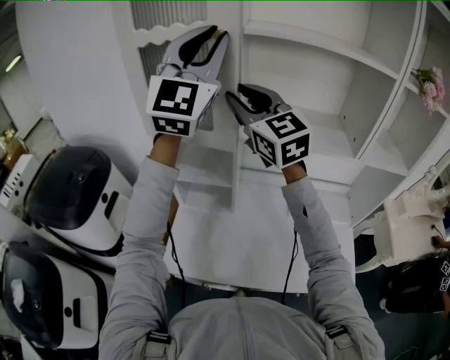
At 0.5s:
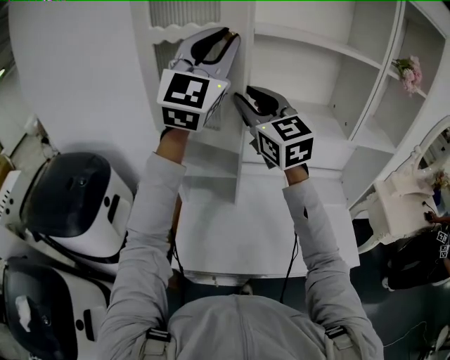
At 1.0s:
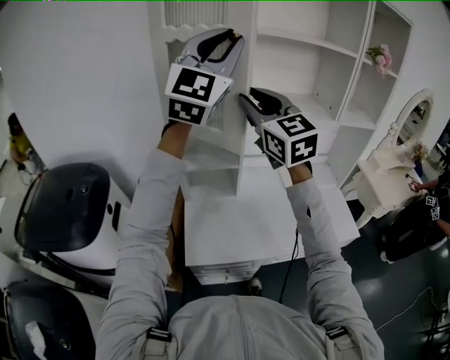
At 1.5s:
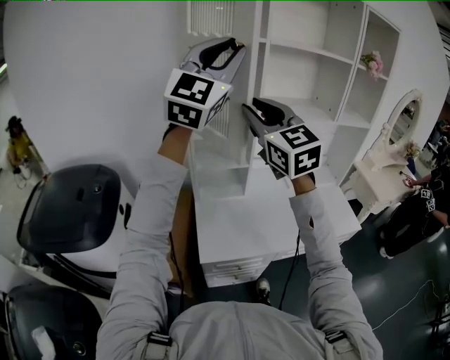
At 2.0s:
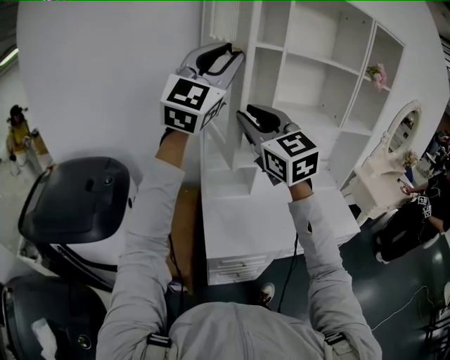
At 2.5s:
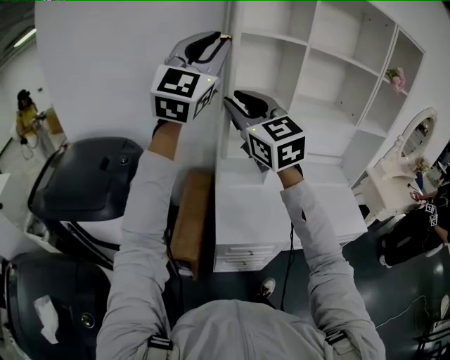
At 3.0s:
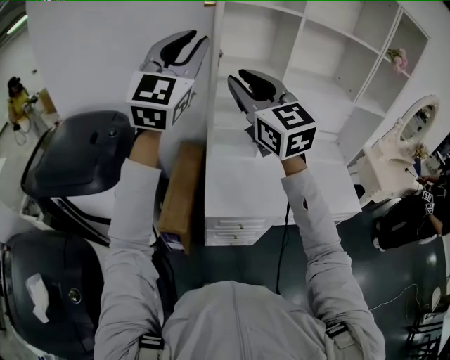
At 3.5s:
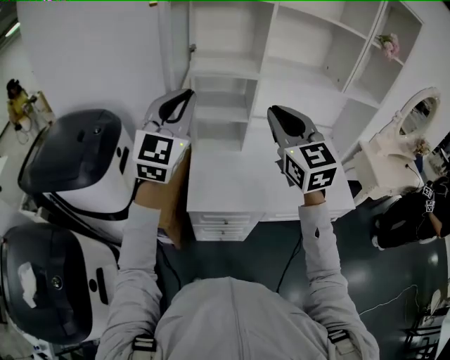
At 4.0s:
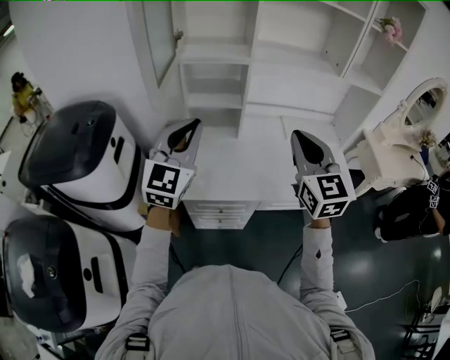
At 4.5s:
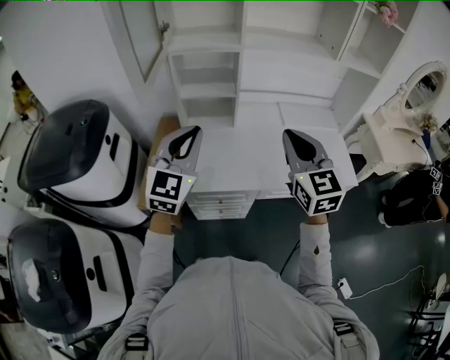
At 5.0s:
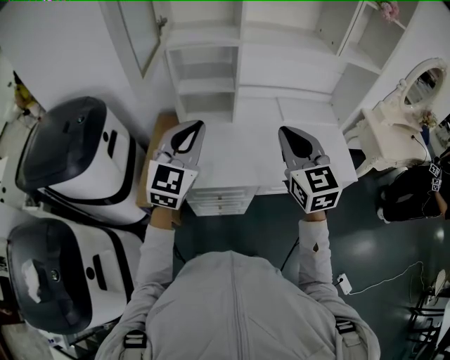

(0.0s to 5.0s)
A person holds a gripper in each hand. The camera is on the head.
0.0s - 2.5s: The grippers both shift to the left and backward by some 35 cm.
2.5s - 5.0s: The left gripper is displaced downward and to the right by about 40 cm, and rotates approximately 30 degrees. Meanwhile the right gripper is displaced to the right and downward by about 40 cm, swivels some 20 degrees, and closes its fingers.

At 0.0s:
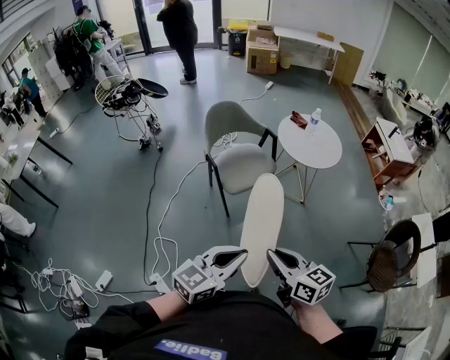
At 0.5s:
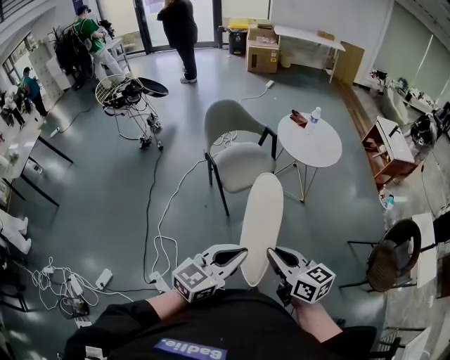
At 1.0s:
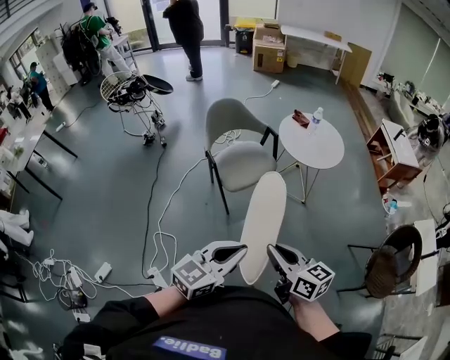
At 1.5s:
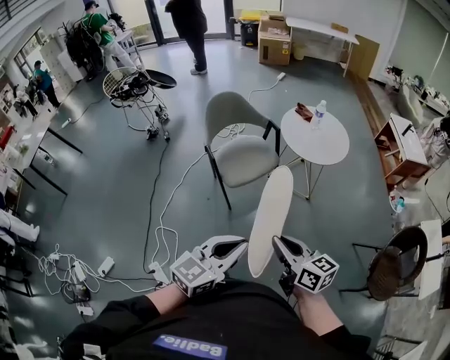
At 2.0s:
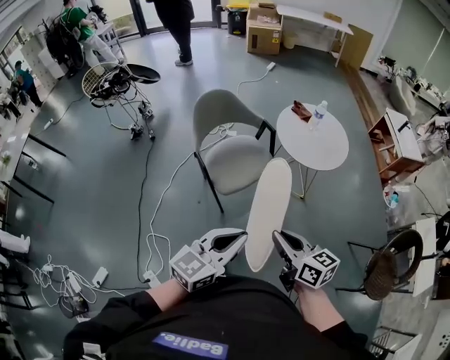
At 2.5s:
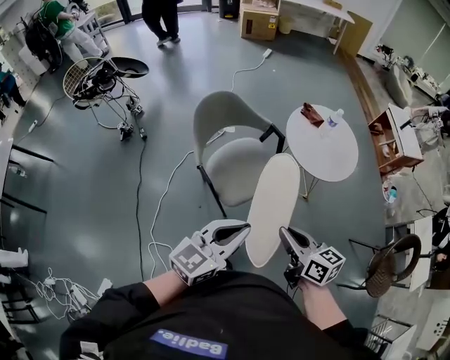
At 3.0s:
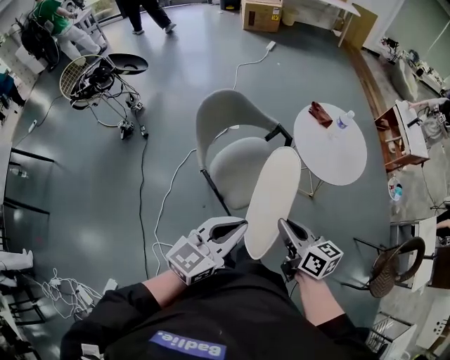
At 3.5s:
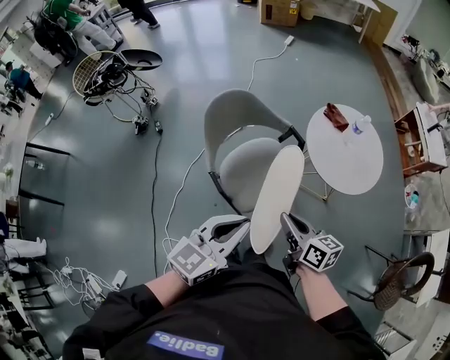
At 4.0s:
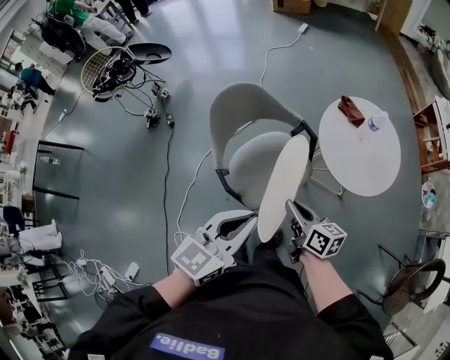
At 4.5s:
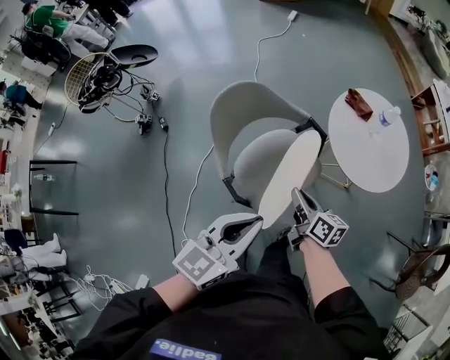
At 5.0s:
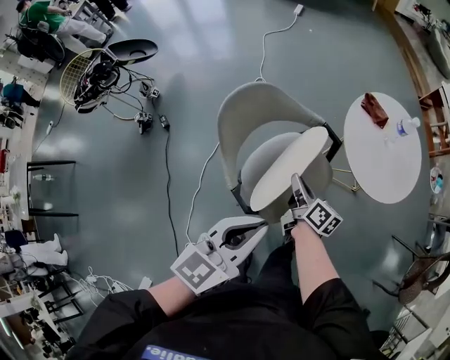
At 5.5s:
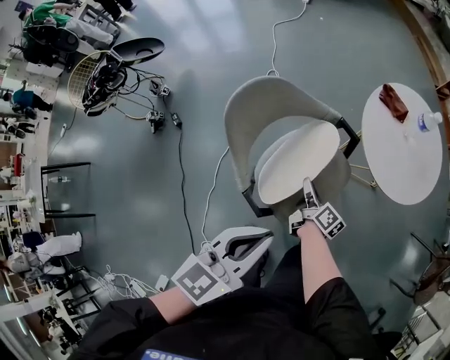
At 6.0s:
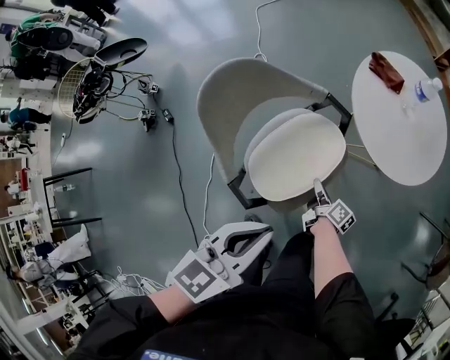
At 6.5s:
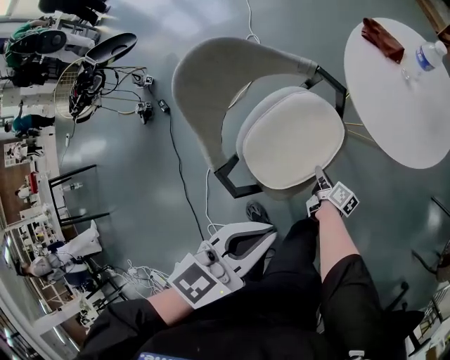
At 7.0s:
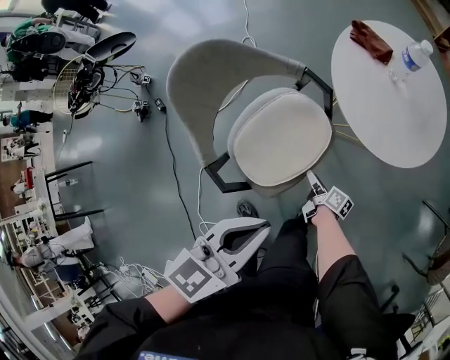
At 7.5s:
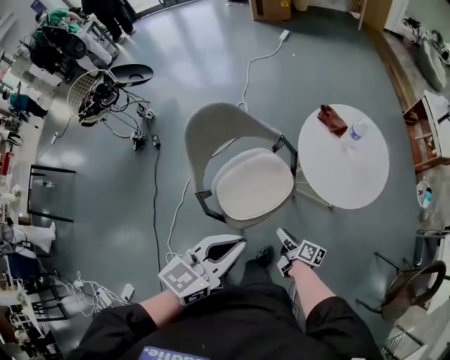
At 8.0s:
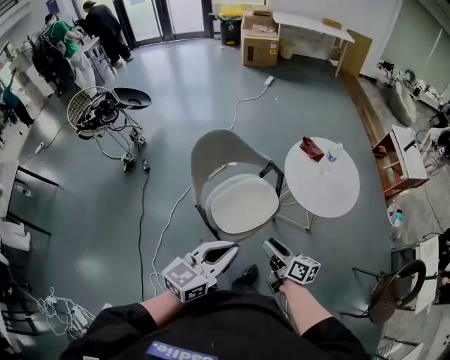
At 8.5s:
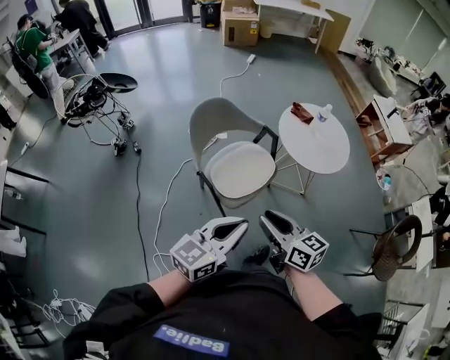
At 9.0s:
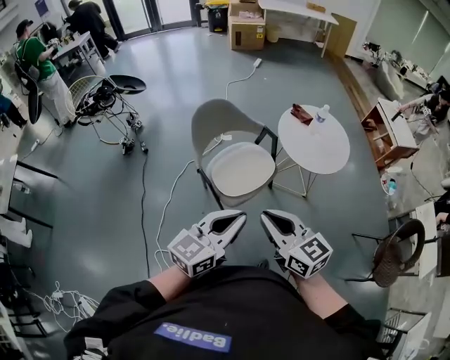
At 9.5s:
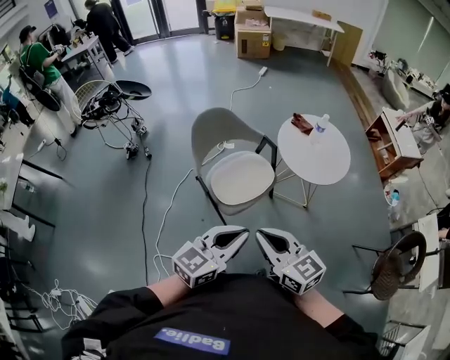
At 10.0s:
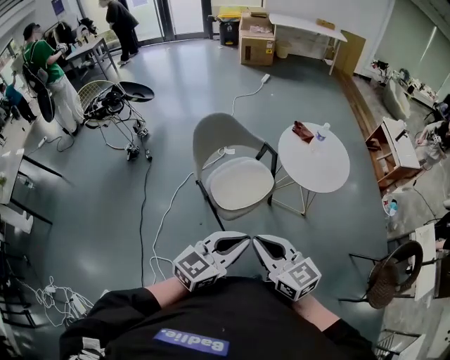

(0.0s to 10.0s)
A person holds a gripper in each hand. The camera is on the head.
0.0s - 2.0s: The two grippers go some 15 cm forward.
2.0s - 4.0s: The two grippers go approximately 30 cm forward.
4.0s - 6.0s: The right gripper is displaced downward by approximately 30 cm, and turns by some 50 degrees. Meanwhile the left gripper moves downward and forward, approximately 15 cm.
6.0s - 8.0s: The right gripper travels upward and backward by some 35 cm, turns by about 40 degrees, and opens its fingers. The left gripper shifts approximately 15 cm backward and upward.
8.0s - 10.0s: The right gripper heads upward and backward, covering approximately 25 cm, twists approximately 40 degrees counterclockwise, seen from behind, and closes, while the left gripper shifts about 15 cm backward and to the right.

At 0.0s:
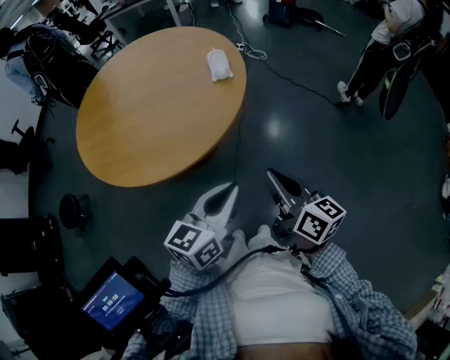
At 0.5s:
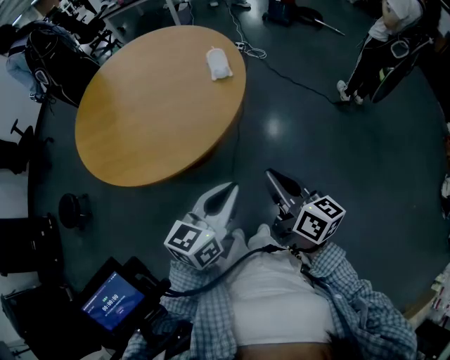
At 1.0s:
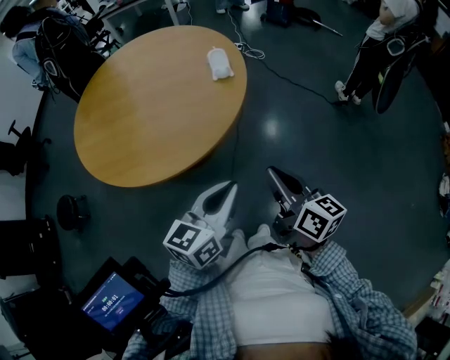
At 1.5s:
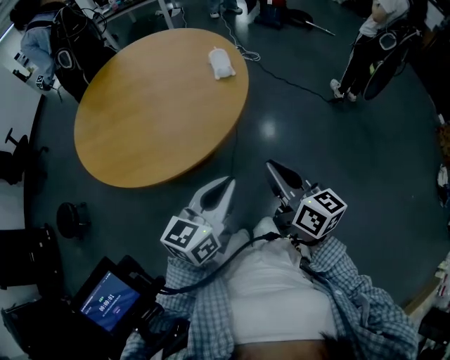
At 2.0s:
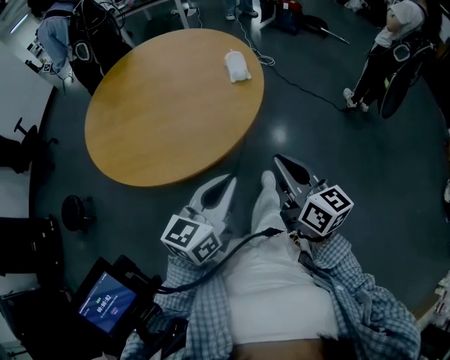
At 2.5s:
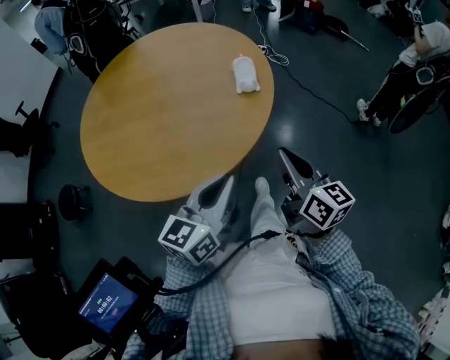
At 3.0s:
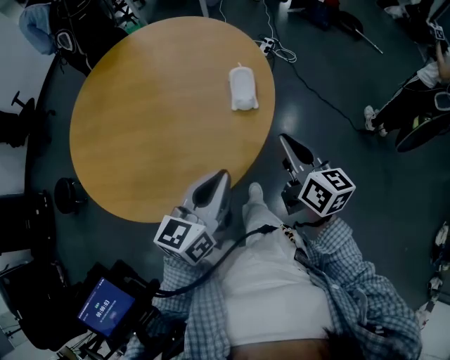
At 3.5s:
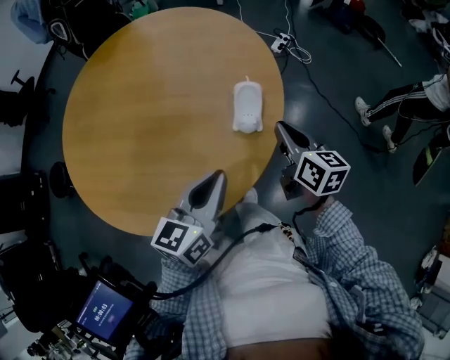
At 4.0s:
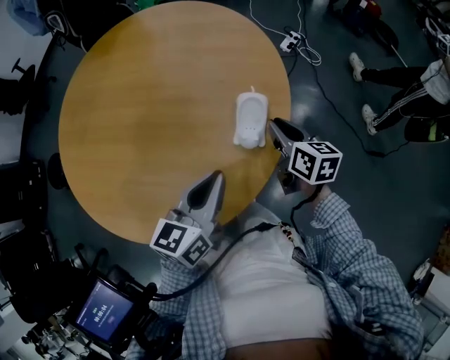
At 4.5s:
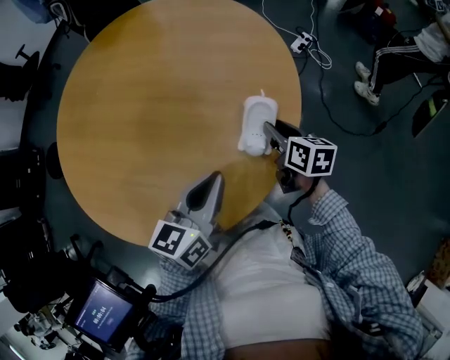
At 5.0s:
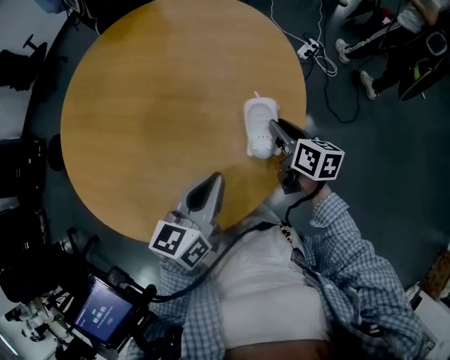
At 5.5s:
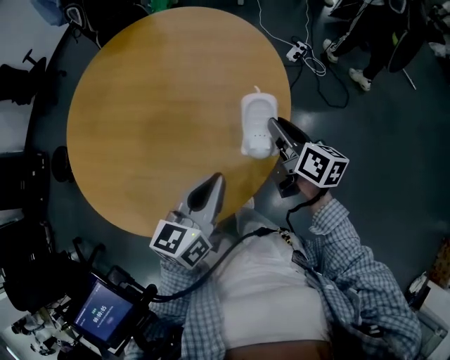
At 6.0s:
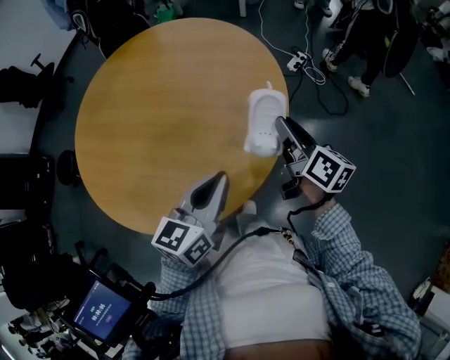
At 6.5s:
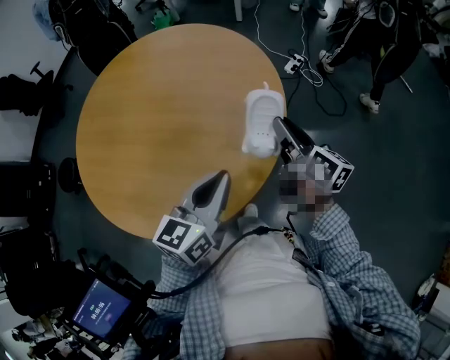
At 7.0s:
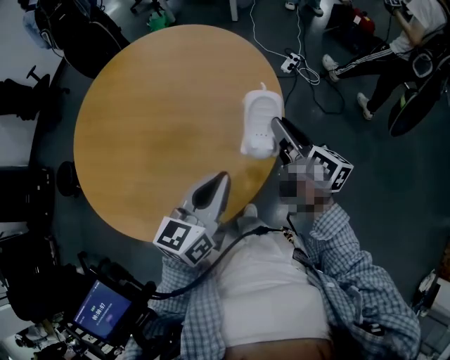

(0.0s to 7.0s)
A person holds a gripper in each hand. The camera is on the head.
0.0s - 2.0s: The left gripper shifts about 5 cm to the left.
2.0s - 3.5s: Both grippers travel together forward, approximately 40 cm. The left gripper turns by roughly 20 degrees; the right gripper changes its angle by some 20 degrees.
3.5s - 5.0s: The right gripper moves forward and downward, about 15 cm, and opens. Meanwhile the left gripper heads forward, covering approximately 5 cm.
5.0s - 7.0s: The right gripper heads upward, covering about 15 cm, and turns by approximately 20 degrees. Meanwhile the left gripper travels upward by roughly 5 cm.

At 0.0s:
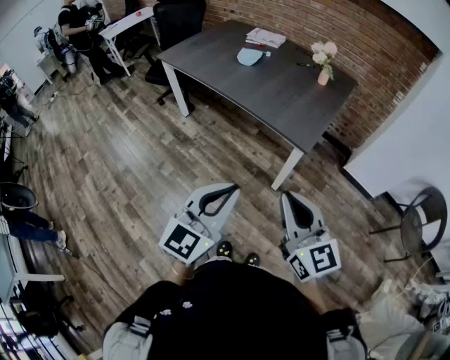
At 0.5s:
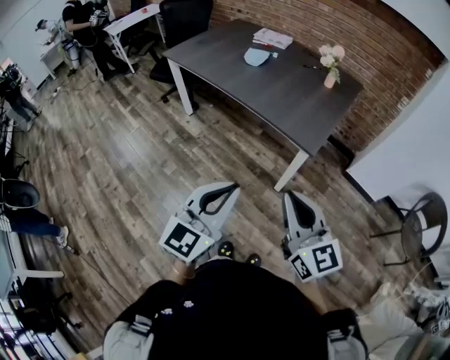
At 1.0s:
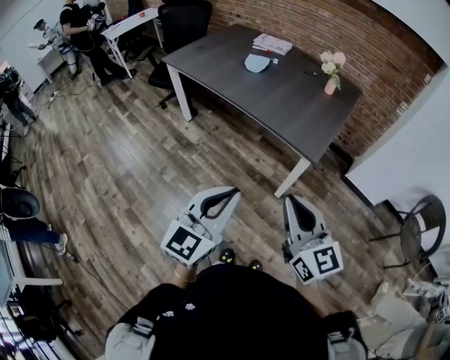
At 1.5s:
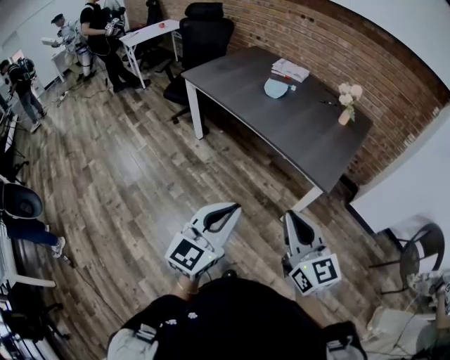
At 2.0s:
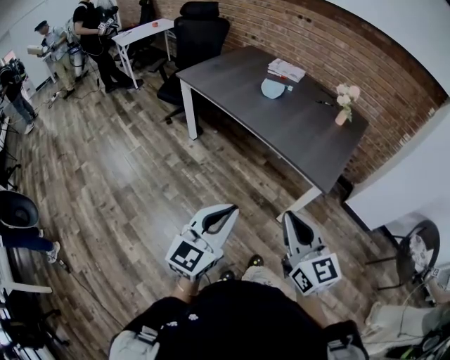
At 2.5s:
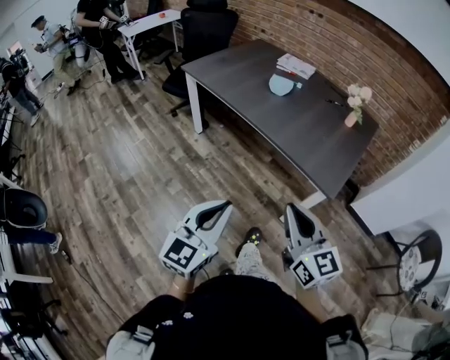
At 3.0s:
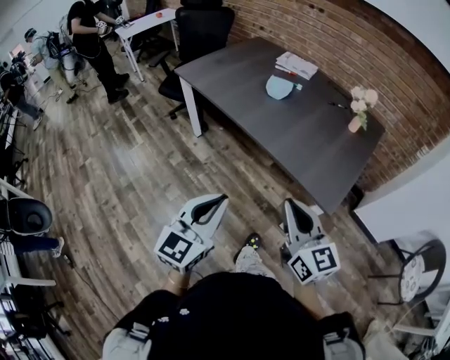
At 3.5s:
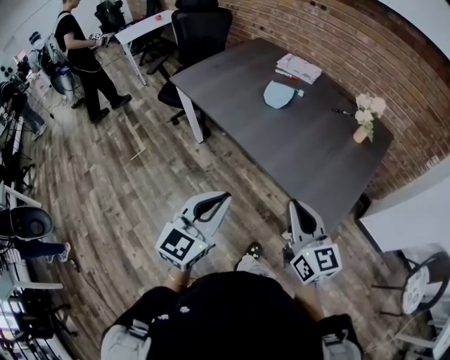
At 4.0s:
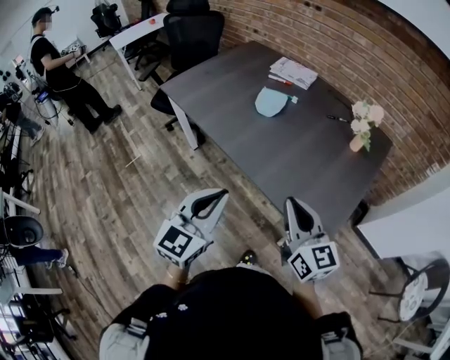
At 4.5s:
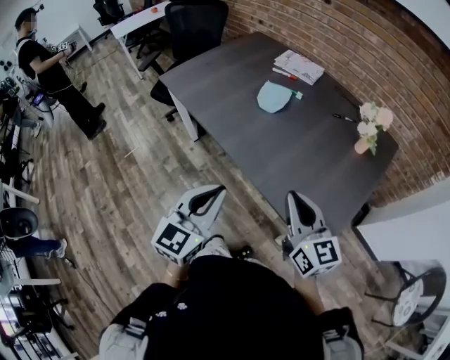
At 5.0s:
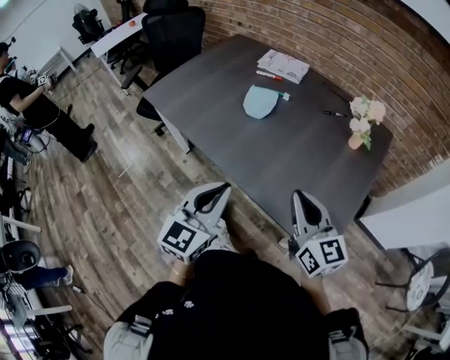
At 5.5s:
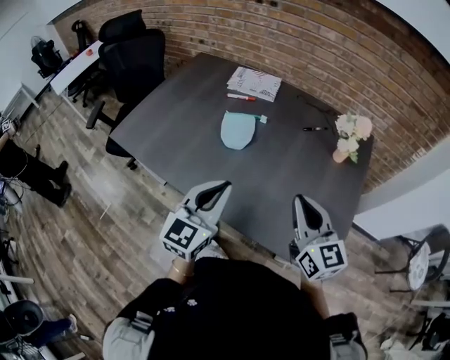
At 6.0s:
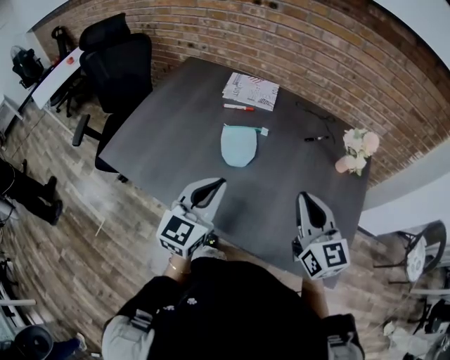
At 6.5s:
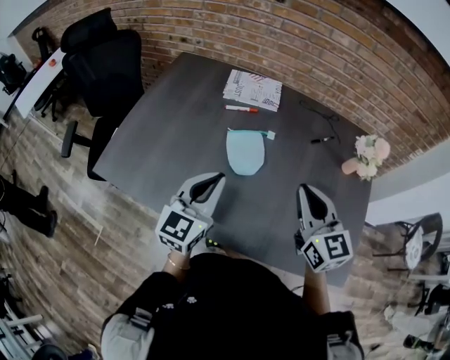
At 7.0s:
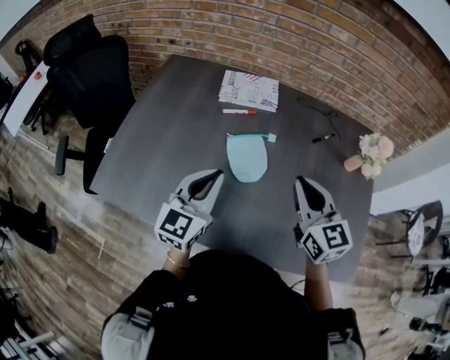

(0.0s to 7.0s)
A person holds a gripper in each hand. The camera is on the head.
0.0s - 2.0s: The two grippers go approximately 15 cm to the left.
2.0s - 3.5s: The two grippers go some 25 cm forward.
3.5s - 5.0s: Both grippers travel together forward, some 15 cm.
5.0s - 7.0s: Both grippers travel together forward and to the left, approximately 40 cm. The left gripper turns by roughly 20 degrees, while the right gripper turns by approximately 30 degrees.
